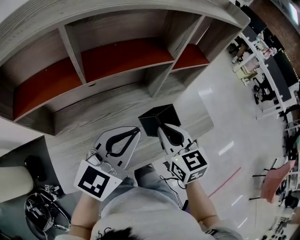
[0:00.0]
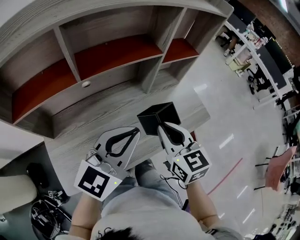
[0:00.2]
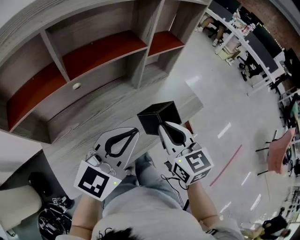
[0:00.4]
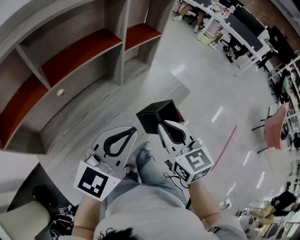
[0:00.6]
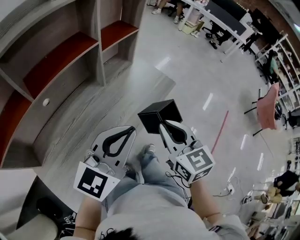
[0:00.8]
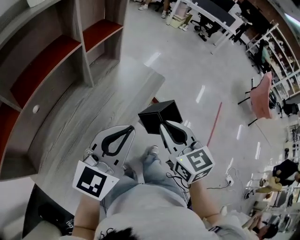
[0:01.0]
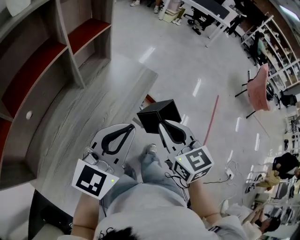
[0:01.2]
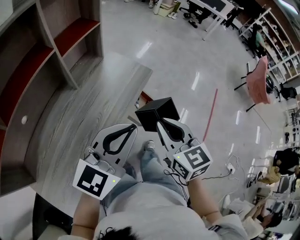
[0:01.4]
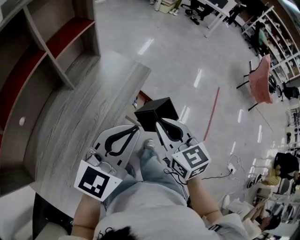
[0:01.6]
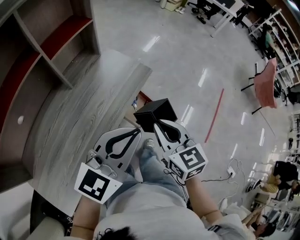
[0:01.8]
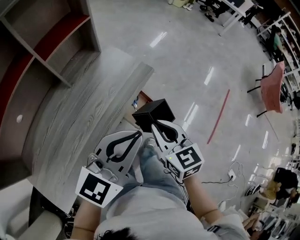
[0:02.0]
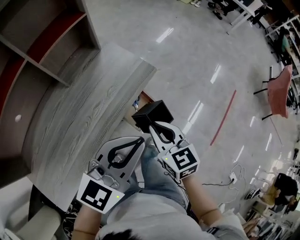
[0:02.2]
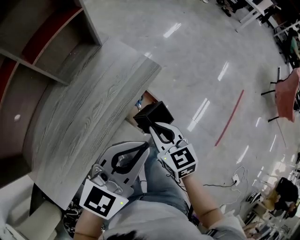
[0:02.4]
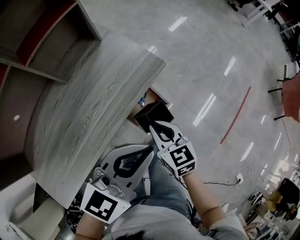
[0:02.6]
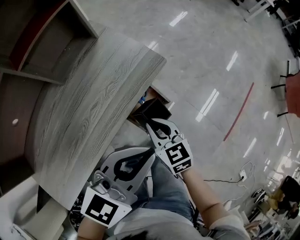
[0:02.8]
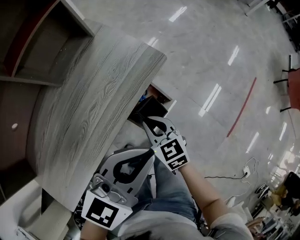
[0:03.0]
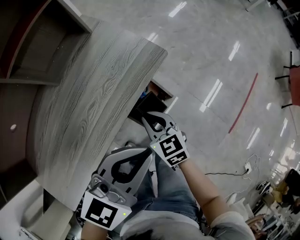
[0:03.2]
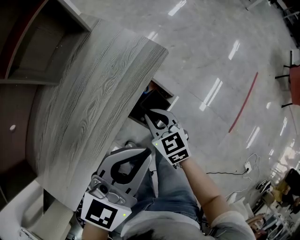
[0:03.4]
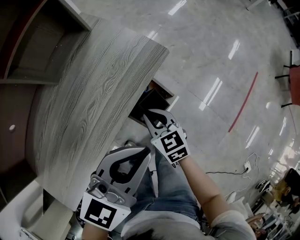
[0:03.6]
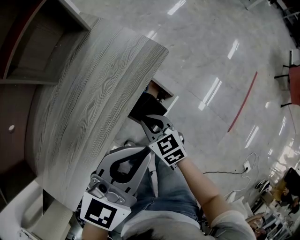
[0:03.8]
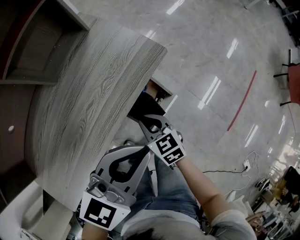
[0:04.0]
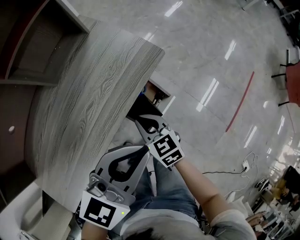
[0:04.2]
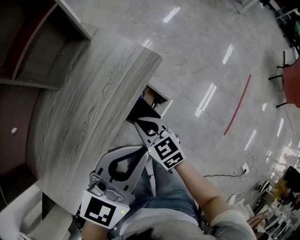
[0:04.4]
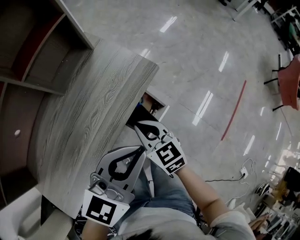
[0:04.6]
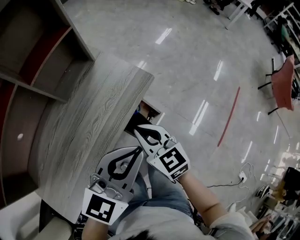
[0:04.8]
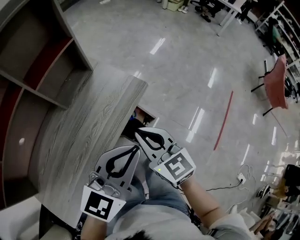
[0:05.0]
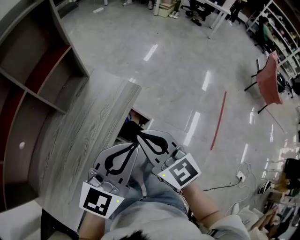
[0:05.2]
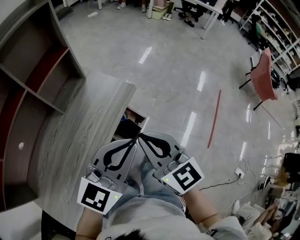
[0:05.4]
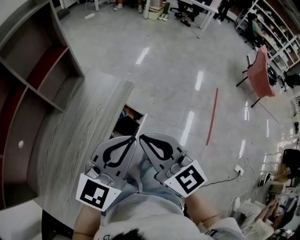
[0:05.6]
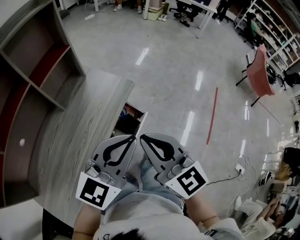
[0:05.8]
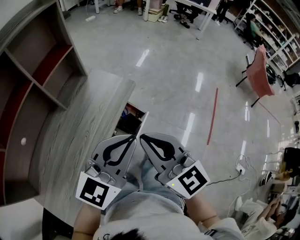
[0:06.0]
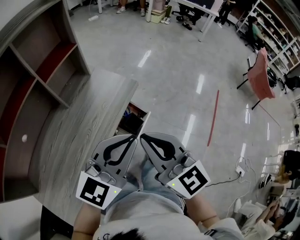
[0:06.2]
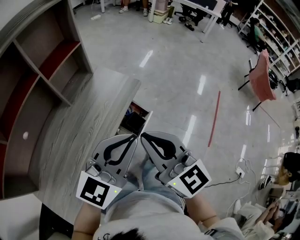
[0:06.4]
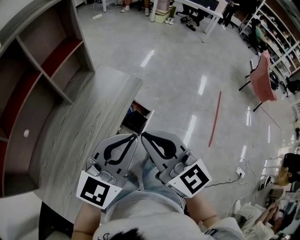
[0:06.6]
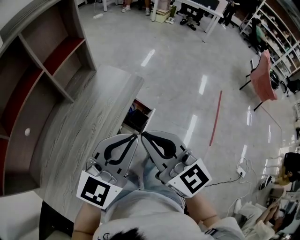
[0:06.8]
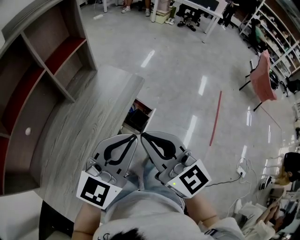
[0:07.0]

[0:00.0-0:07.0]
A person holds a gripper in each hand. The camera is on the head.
0:00.0 to 0:01.4: The left gripper changes place by about 20 cm, and swivels about 40 degrees. Meanwhile the right gripper changes place by roughly 25 cm, and swivels about 40 degrees.
0:01.4 to 0:02.8: The right gripper shifts some 25 cm downward and forward, and turns by roughly 20 degrees. The left gripper is displaced to the right, forward and downward by about 20 cm.
0:02.8 to 0:04.2: The right gripper shifts by about 5 cm.
0:04.2 to 0:05.6: The right gripper shifts roughly 30 cm upward, and changes its angle by about 30 degrees. The left gripper is displaced upward and backward by roughly 15 cm.
0:05.6 to 0:07.0: Both grippers move backward, roughly 5 cm.

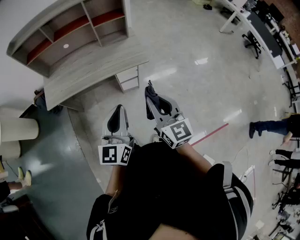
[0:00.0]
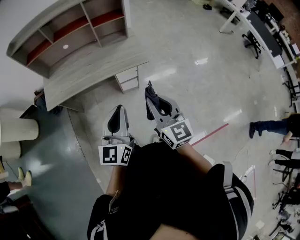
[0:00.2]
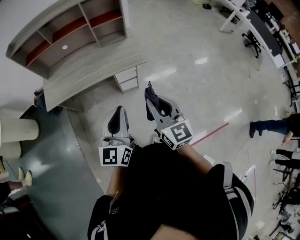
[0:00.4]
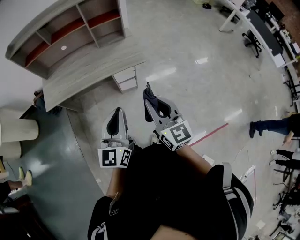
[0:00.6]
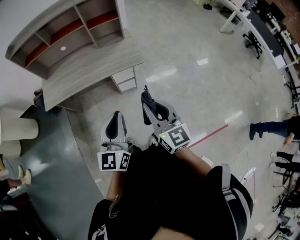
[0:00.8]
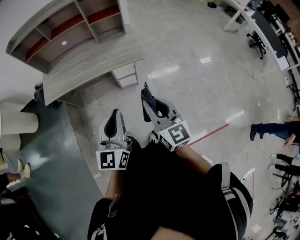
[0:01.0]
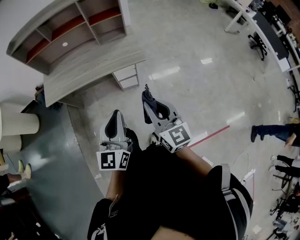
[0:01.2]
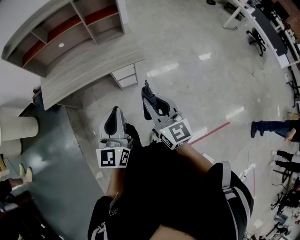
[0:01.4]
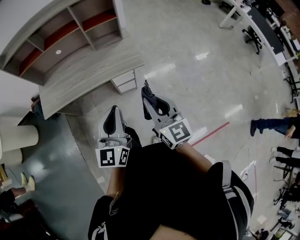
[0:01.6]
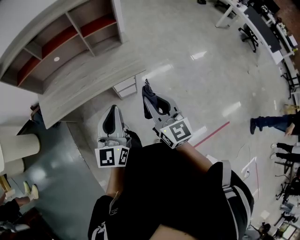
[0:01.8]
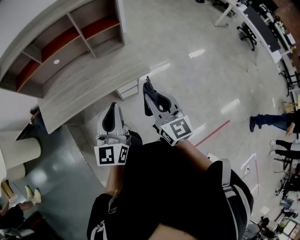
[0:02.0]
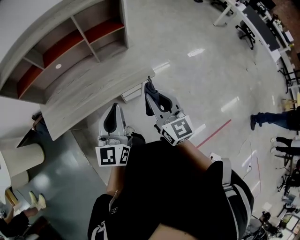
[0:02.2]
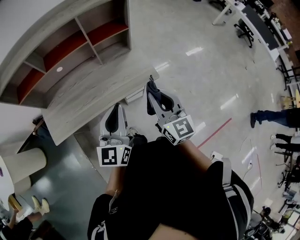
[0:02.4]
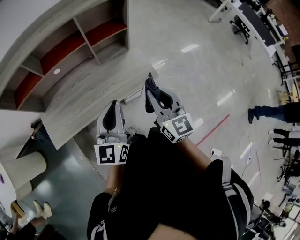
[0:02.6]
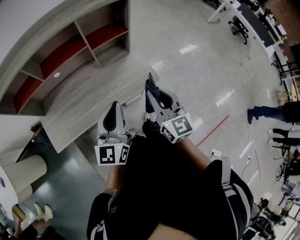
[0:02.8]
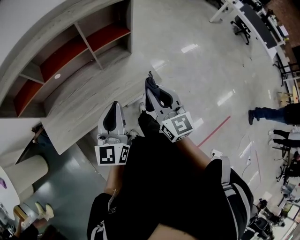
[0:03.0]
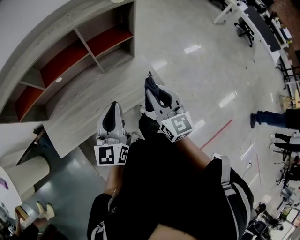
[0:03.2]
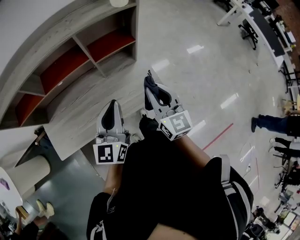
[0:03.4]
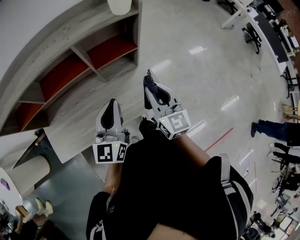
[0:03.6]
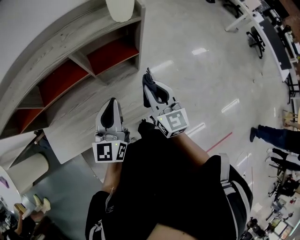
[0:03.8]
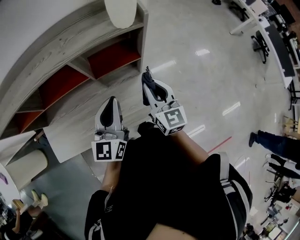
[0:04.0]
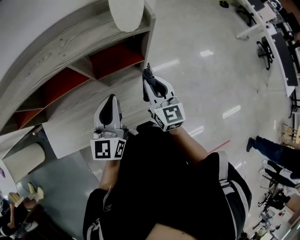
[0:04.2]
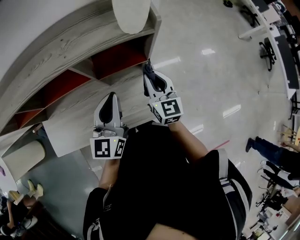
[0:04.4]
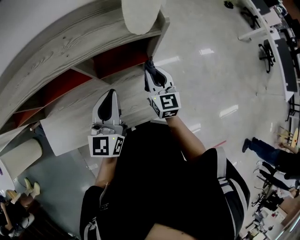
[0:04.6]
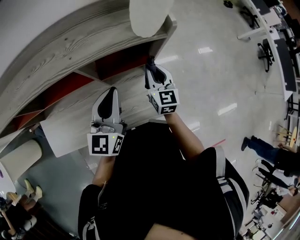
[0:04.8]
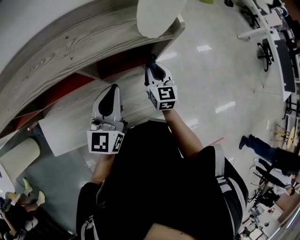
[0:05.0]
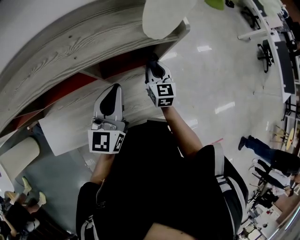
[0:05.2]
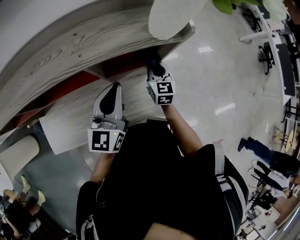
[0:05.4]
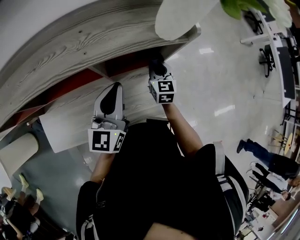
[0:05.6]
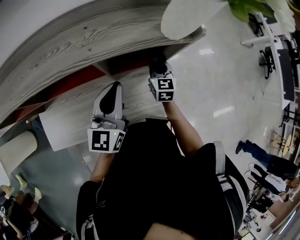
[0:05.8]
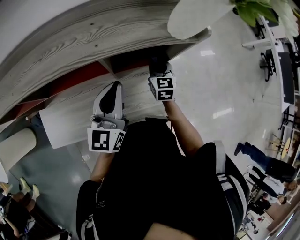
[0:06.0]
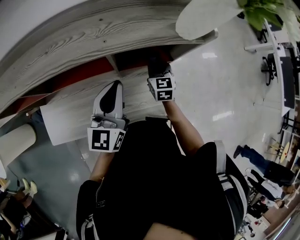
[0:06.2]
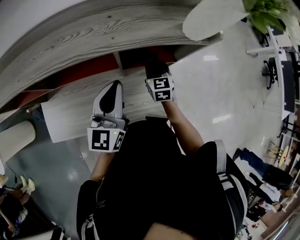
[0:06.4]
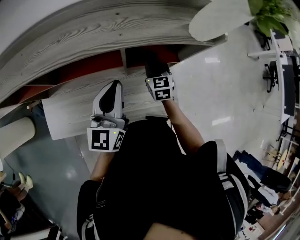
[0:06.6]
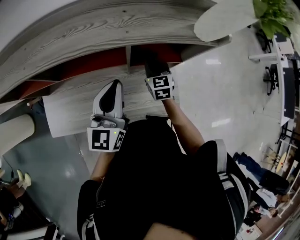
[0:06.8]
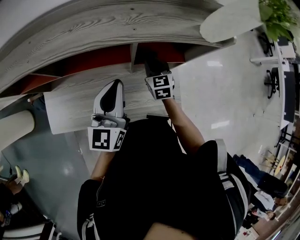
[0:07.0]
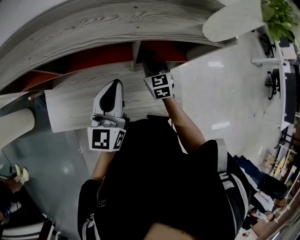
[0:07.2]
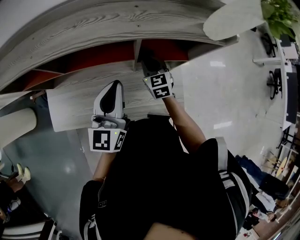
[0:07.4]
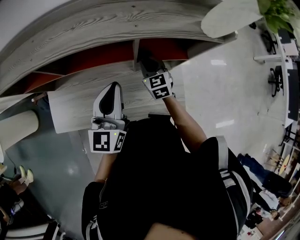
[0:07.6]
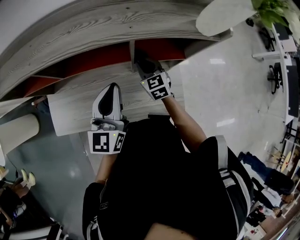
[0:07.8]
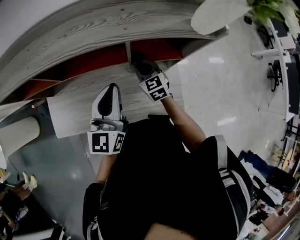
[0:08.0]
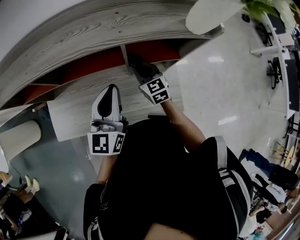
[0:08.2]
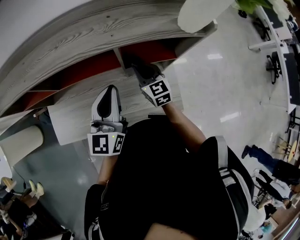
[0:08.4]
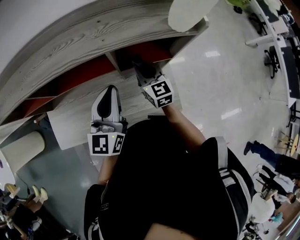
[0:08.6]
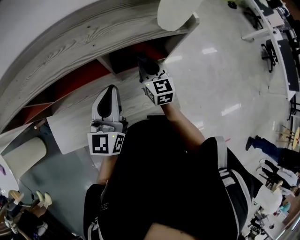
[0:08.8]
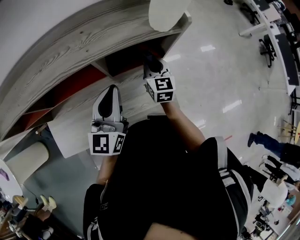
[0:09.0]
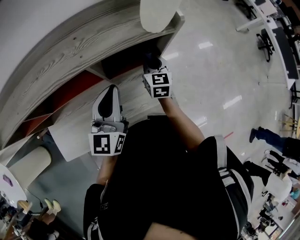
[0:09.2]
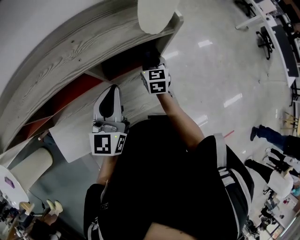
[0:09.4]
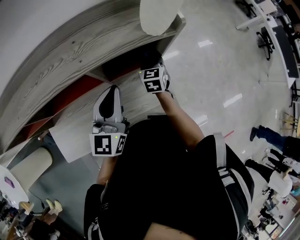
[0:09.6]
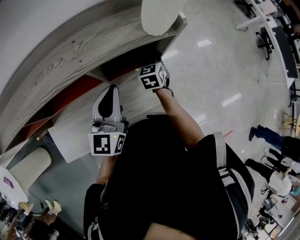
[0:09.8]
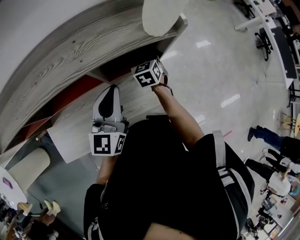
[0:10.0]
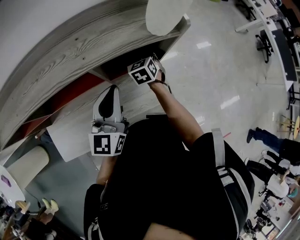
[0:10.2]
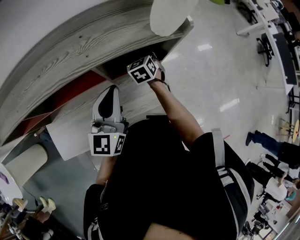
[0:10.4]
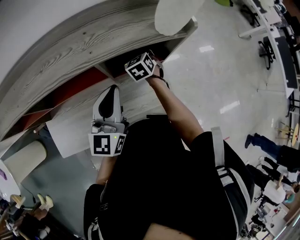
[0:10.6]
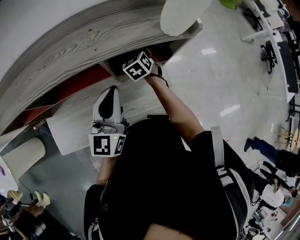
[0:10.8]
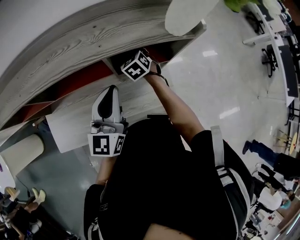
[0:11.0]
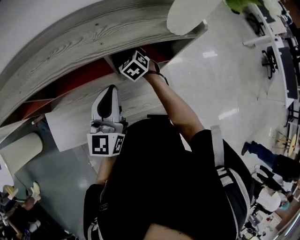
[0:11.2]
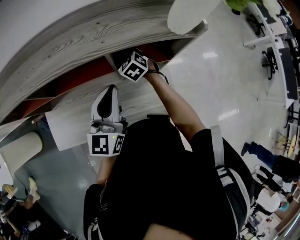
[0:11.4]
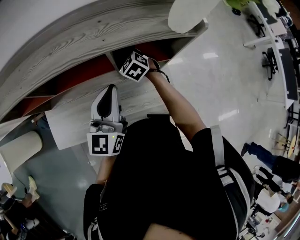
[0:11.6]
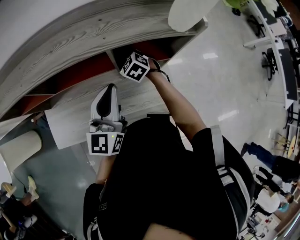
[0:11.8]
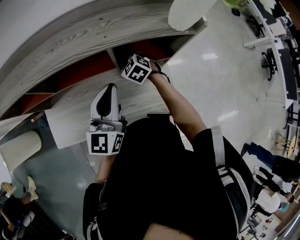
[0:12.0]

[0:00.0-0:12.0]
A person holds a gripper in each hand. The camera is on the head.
0:00.0 to 0:01.6: Both grippers travel together forward, approximately 5 cm.
0:01.6 to 0:03.0: The grippers both shift forward and to the left by approximately 30 cm.
0:03.0 to 0:04.4: The two grippers go about 30 cm forward.
0:04.4 to 0:06.0: The left gripper goes roughly 5 cm to the left; the right gripper shifts about 15 cm downward, forward and to the left.
0:06.0 to 0:07.6: The right gripper goes roughly 15 cm to the left, and changes its angle by approximately 20 degrees. The left gripper heads to the left, covering some 10 cm.
0:07.6 to 0:09.0: The left gripper travels to the right by some 10 cm; the right gripper goes about 15 cm to the right and upward, and swivels some 30 degrees.
0:09.0 to 0:10.4: The right gripper goes roughly 10 cm downward and forward, and turns by about 30 degrees.
0:10.4 to 0:12.0: The right gripper goes roughly 15 cm to the left, and turns by some 40 degrees. The left gripper ends up roughly 5 cm from where it was.

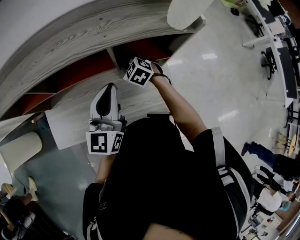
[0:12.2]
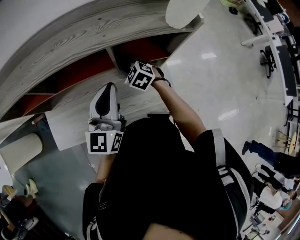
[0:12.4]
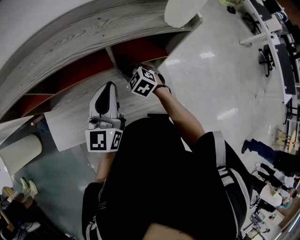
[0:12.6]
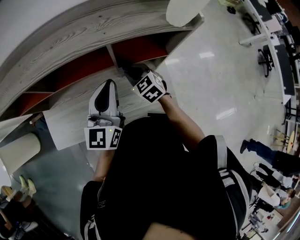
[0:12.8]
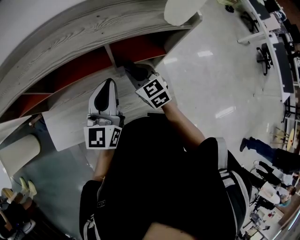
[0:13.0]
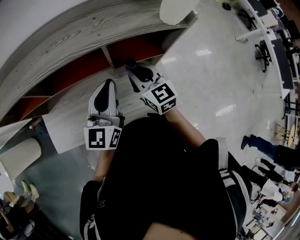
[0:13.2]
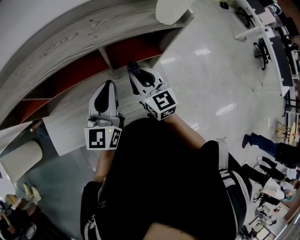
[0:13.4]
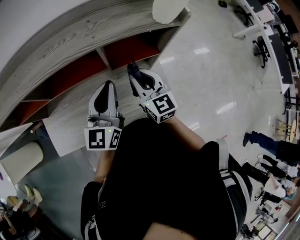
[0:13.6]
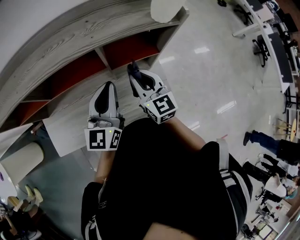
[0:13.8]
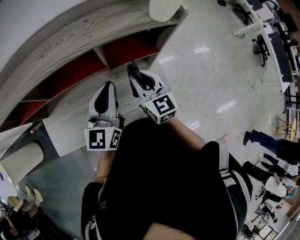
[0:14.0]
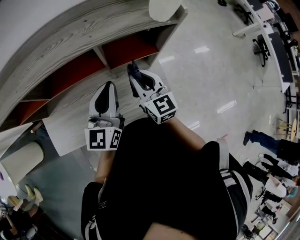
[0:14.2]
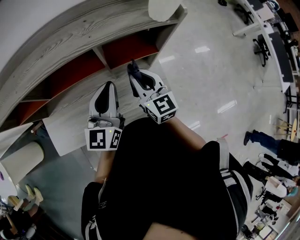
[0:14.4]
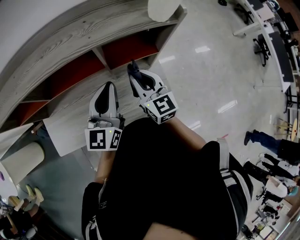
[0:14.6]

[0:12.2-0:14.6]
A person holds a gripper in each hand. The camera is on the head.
0:12.2 to 0:13.4: The right gripper goes roughly 15 cm upward, backward and to the right, and tips its fingers upward by about 40 degrees.
0:13.4 to 0:14.6: The grippers stay close to where they were, moving slightly.

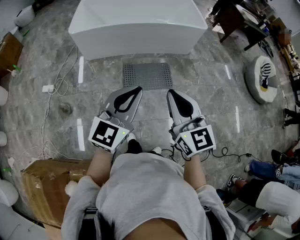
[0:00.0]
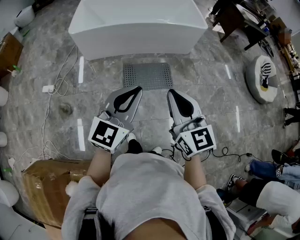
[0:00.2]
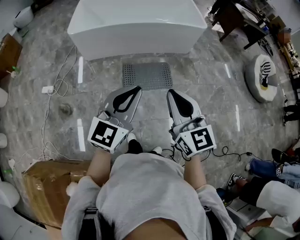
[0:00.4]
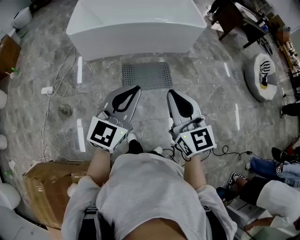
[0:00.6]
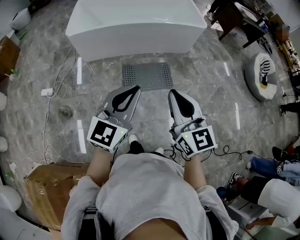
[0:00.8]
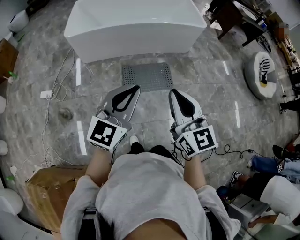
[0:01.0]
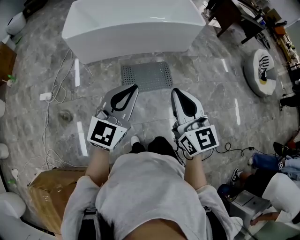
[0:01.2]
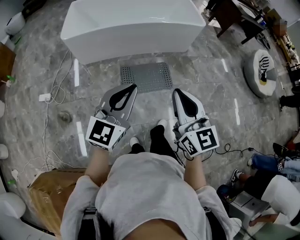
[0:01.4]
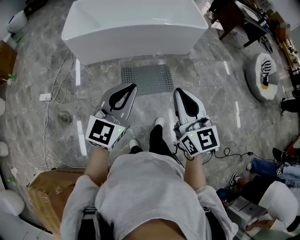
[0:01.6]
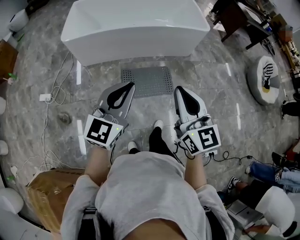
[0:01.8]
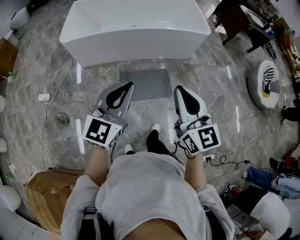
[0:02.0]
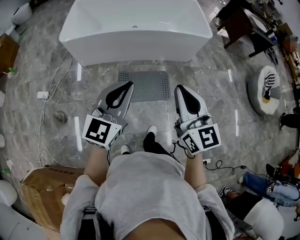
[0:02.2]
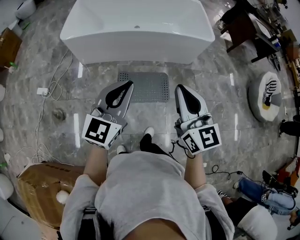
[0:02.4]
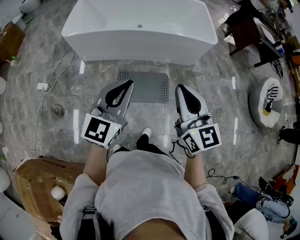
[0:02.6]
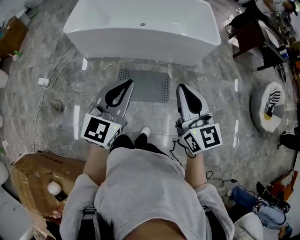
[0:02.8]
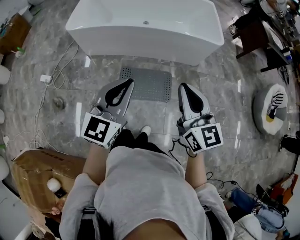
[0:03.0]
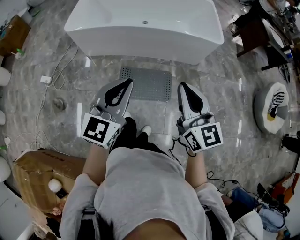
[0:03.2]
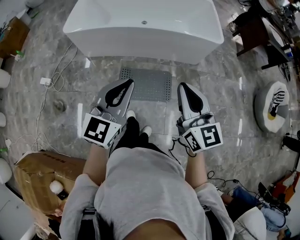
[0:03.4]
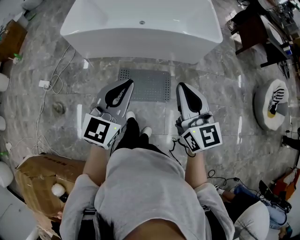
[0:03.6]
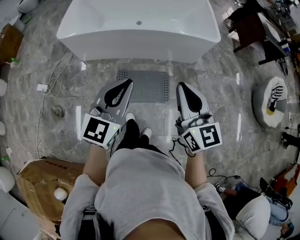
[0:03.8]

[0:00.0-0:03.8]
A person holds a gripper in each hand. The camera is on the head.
0:00.0 to 0:01.2: The grippers both shift forward by approximately 5 cm.
0:01.2 to 0:02.6: Both grippers travel together forward and to the right, about 25 cm.
0:02.6 to 0:03.8: Both grippers travel together forward, about 5 cm.
